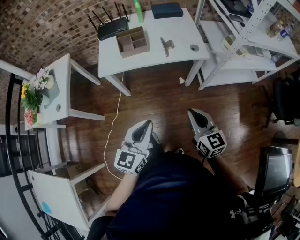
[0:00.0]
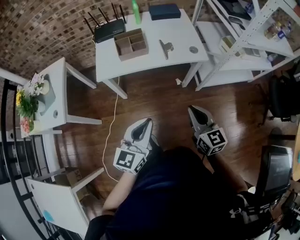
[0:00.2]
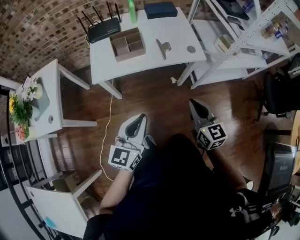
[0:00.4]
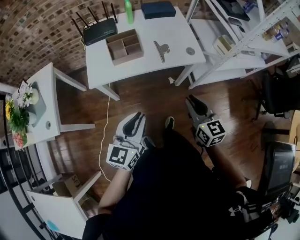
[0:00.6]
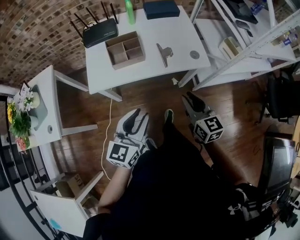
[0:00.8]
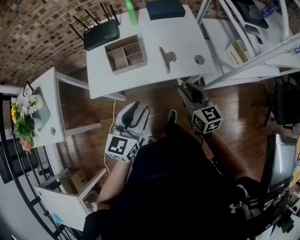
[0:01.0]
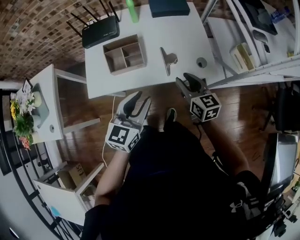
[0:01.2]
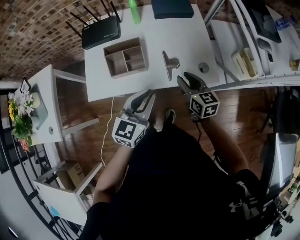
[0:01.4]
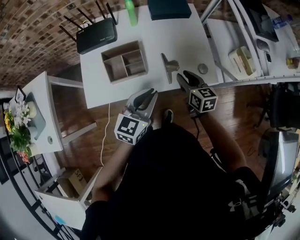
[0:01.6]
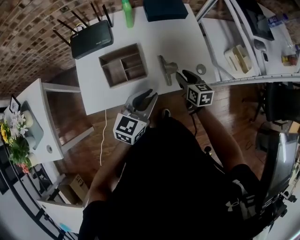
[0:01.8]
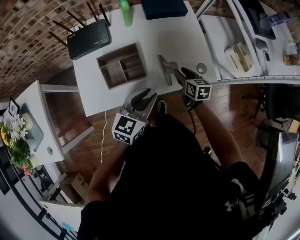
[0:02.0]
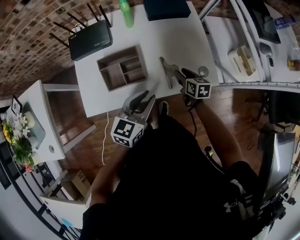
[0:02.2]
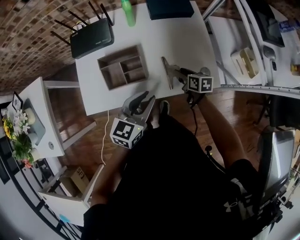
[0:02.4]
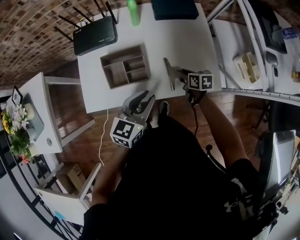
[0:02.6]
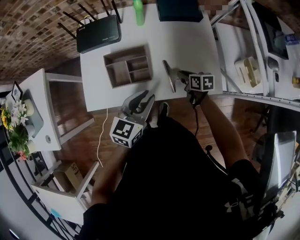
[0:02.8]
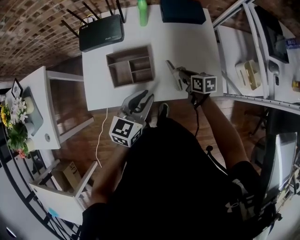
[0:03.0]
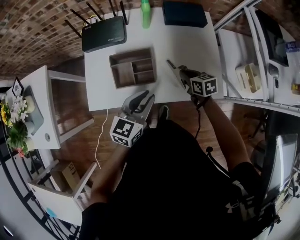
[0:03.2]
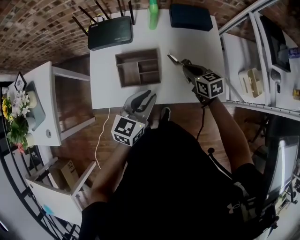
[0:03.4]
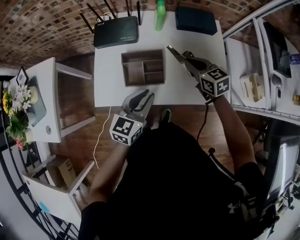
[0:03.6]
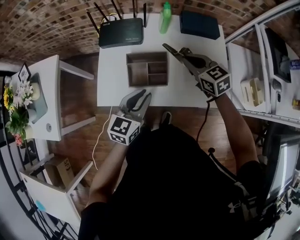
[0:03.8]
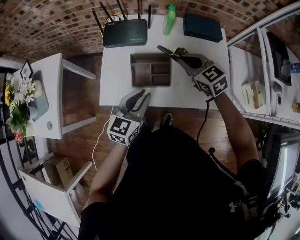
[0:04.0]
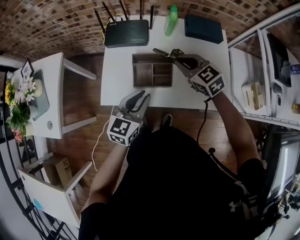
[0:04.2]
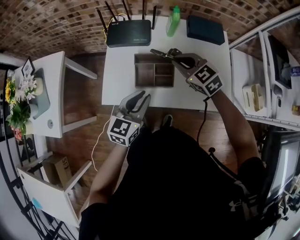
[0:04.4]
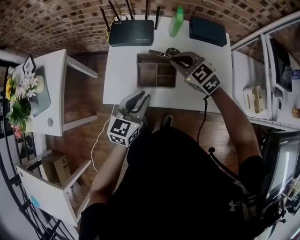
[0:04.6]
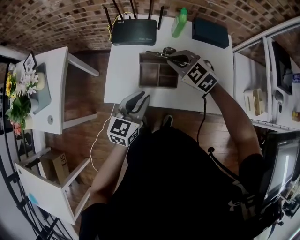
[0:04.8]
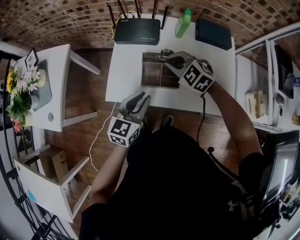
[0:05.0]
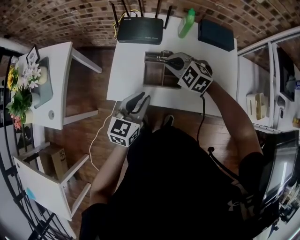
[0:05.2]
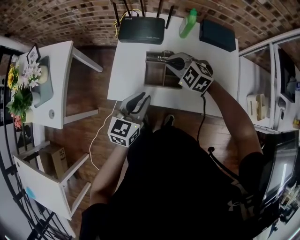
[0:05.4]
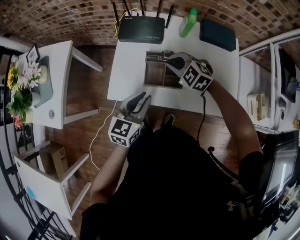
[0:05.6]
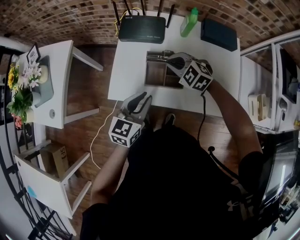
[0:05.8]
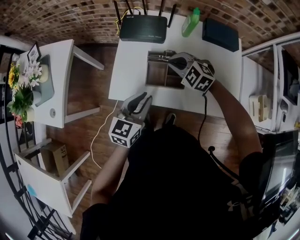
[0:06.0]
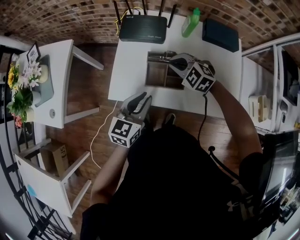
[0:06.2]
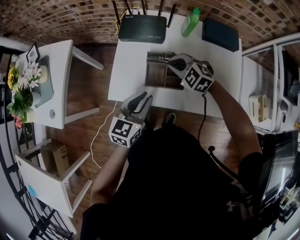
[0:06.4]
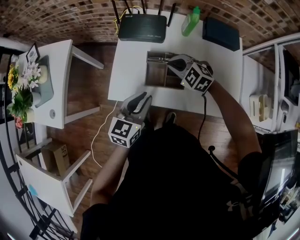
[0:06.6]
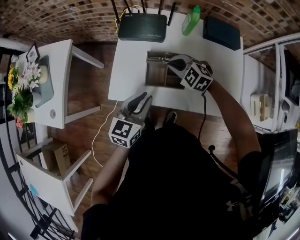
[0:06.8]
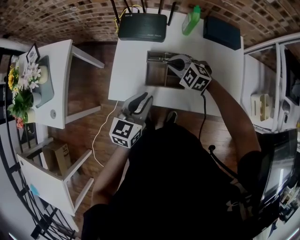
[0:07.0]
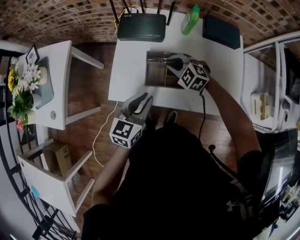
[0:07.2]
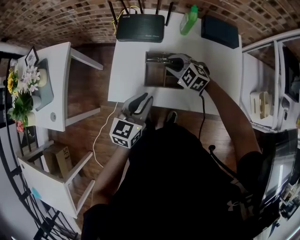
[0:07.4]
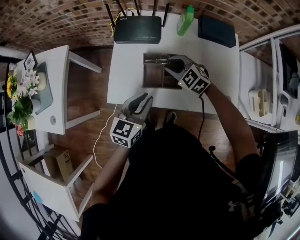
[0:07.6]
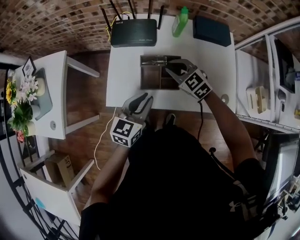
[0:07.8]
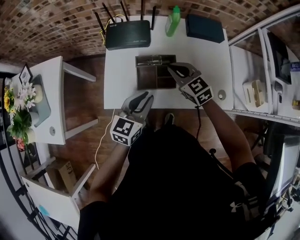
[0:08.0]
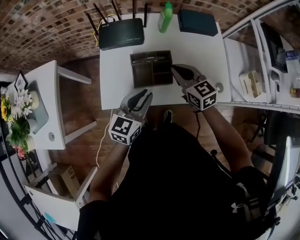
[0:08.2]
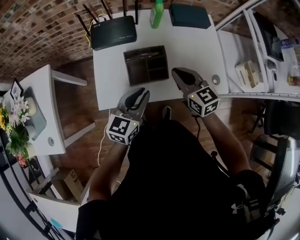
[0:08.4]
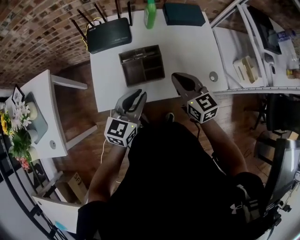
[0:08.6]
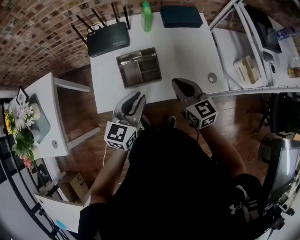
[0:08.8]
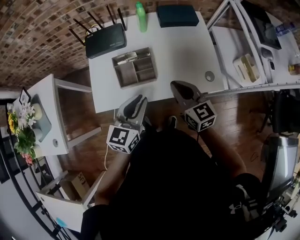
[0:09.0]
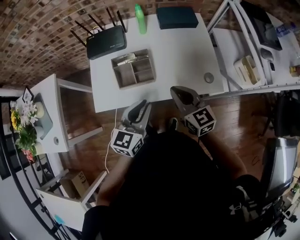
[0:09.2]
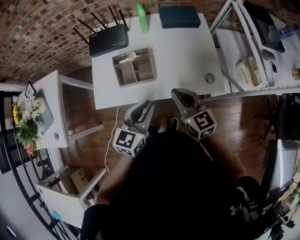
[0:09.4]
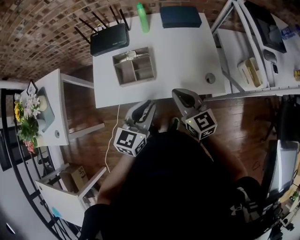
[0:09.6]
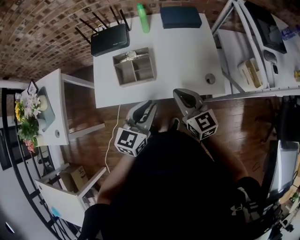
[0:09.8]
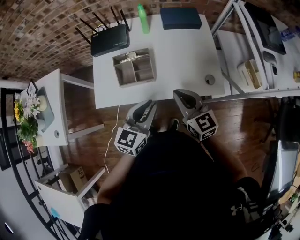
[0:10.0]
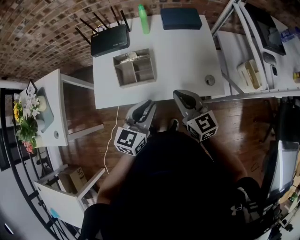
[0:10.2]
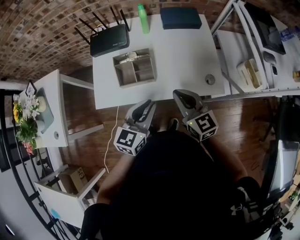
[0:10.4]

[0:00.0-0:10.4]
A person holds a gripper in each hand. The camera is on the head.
0:00.0 to 0:01.4: Both grippers move forward, approximately 35 cm. The right gripper opens up; the left gripper opens, then closes again.
0:01.4 to 0:03.0: The right gripper moves downward and forward, approximately 15 cm, changes its angle by approximately 30 degrees, and closes up; the left gripper is displaced forward and to the left by about 10 cm.
0:03.0 to 0:04.4: The left gripper heads to the left, covering about 10 cm. The right gripper goes approximately 25 cm upward and to the left, and rotates around the line of its fingers by about 60 degrees, counterclockwise from behind.
0:04.4 to 0:06.0: The right gripper heads to the left and downward, covering approximately 10 cm, and turns by about 30 degrees.
0:06.0 to 0:07.4: The right gripper opens up.
0:07.4 to 0:09.0: The left gripper moves to the right, about 10 cm, while the right gripper shifts some 25 cm backward, to the right and upward, swivels approximately 60 degrees, and closes its fingers.
0:09.0 to 0:10.4: The left gripper is displaced to the right by roughly 5 cm.

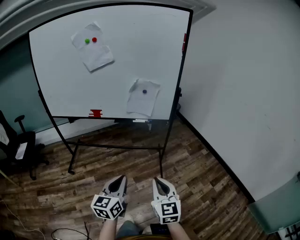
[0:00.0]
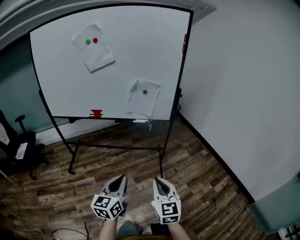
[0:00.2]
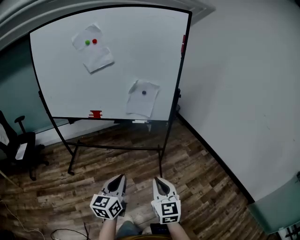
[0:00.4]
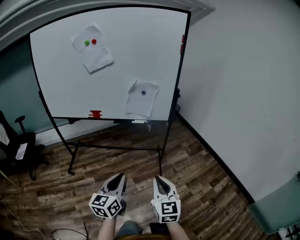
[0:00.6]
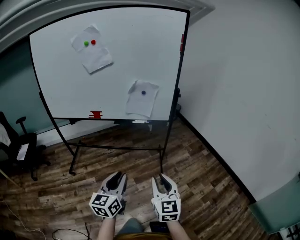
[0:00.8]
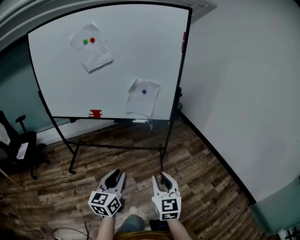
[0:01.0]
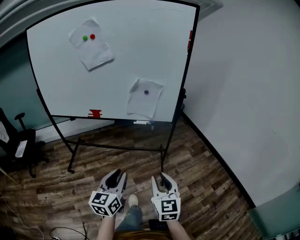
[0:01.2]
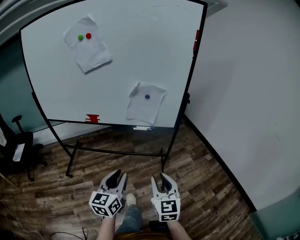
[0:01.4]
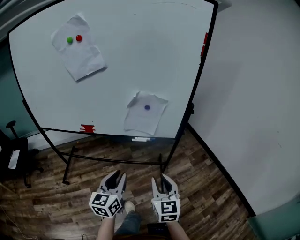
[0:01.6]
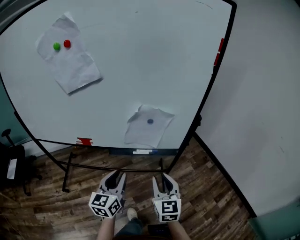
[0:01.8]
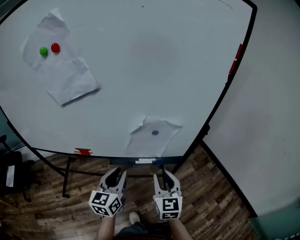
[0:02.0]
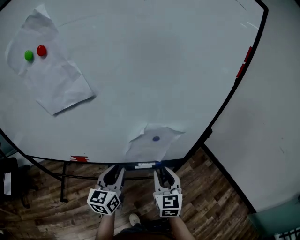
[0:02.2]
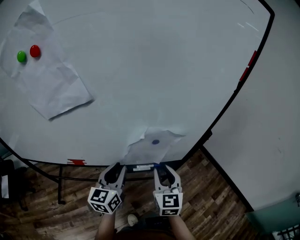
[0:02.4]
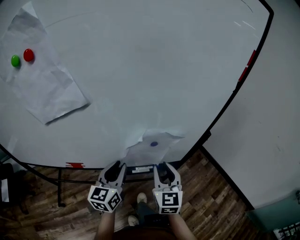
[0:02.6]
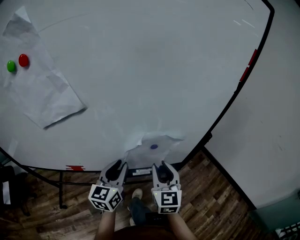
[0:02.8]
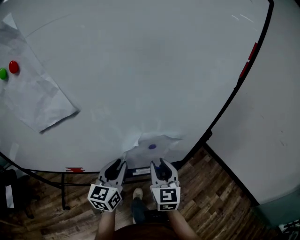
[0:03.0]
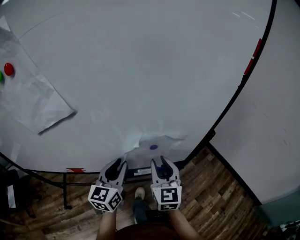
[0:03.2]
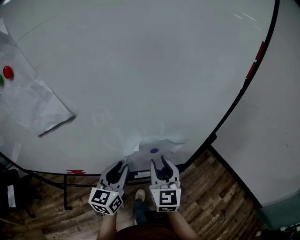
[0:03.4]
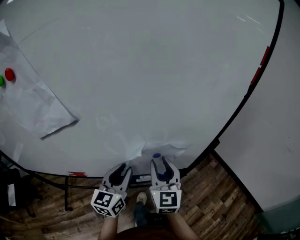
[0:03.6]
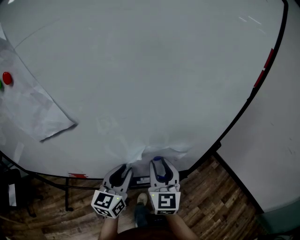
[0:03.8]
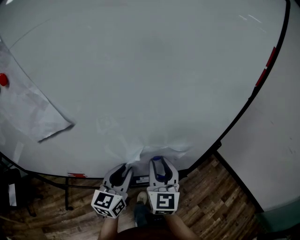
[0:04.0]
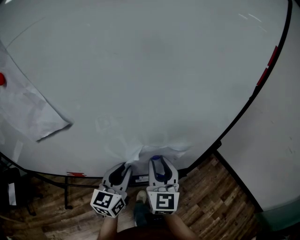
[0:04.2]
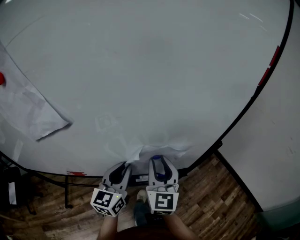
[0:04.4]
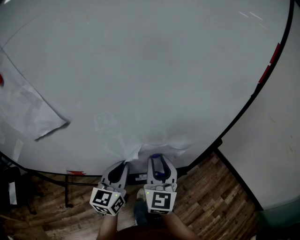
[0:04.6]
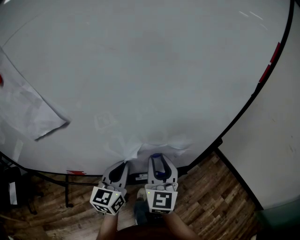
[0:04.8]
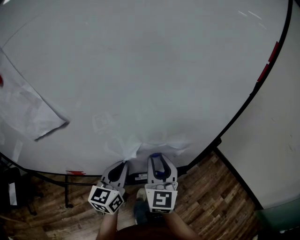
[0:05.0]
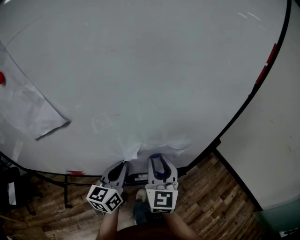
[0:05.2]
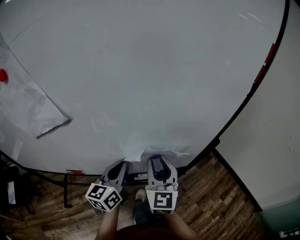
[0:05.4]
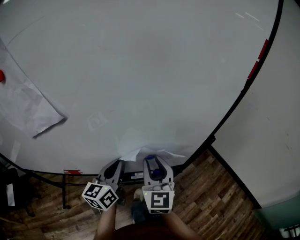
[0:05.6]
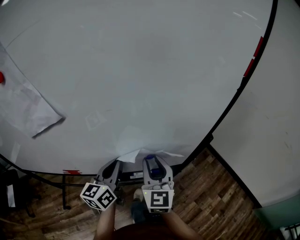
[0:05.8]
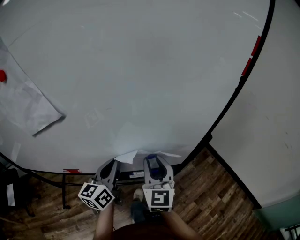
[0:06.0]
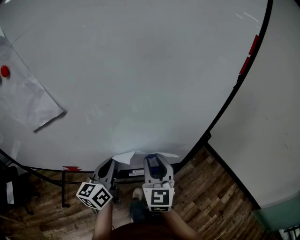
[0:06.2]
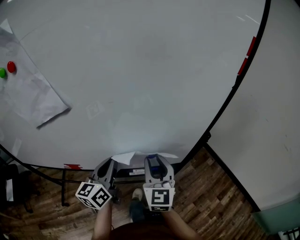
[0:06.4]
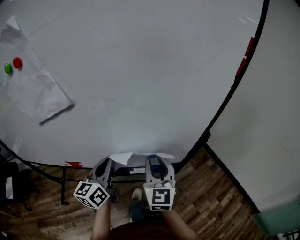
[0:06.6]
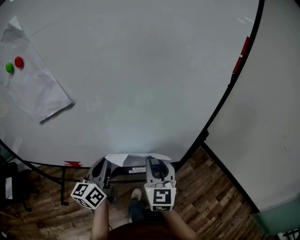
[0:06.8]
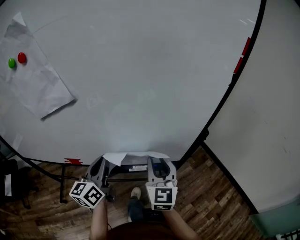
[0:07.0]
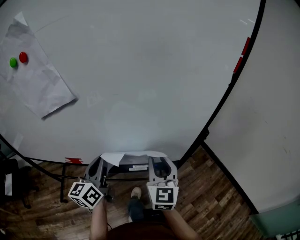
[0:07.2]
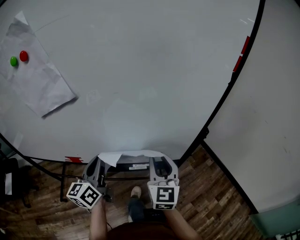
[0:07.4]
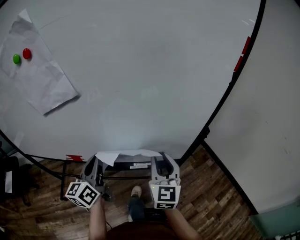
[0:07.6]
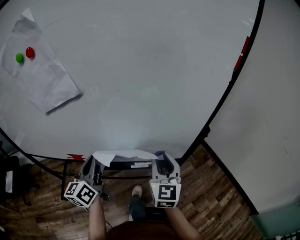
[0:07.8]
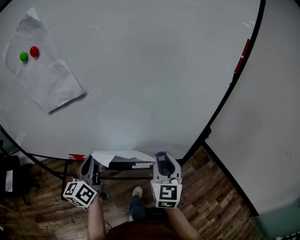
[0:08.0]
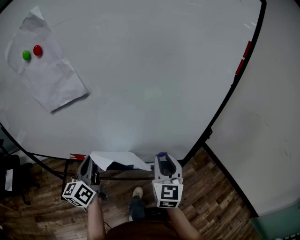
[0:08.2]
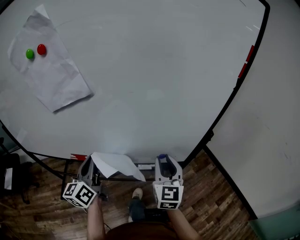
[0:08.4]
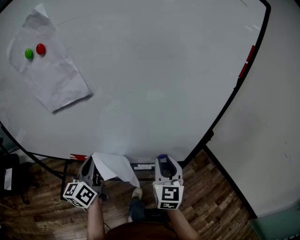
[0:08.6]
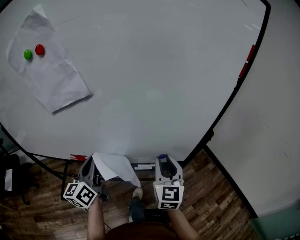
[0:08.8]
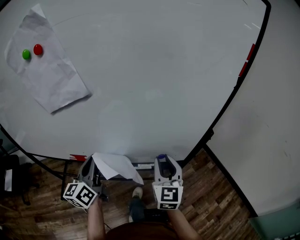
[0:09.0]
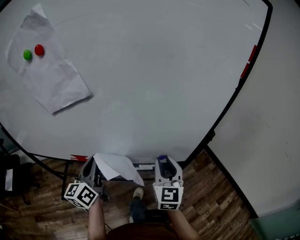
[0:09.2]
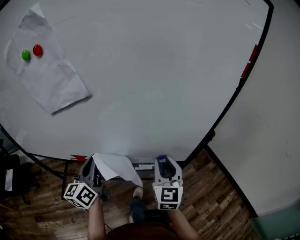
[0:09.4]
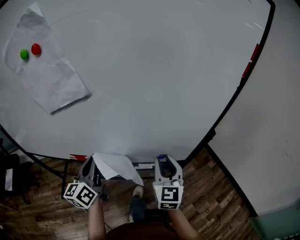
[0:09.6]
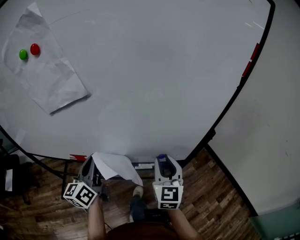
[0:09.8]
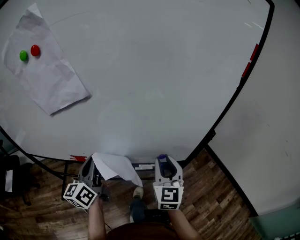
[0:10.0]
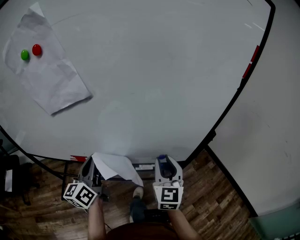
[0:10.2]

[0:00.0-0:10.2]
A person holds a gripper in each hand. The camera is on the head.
0:00.0 to 0:01.4: Both grippers move forward, approximately 15 cm. The right gripper opens its fingers.
0:01.4 to 0:03.0: Both grippers are carried forward, about 40 cm.
0:03.0 to 0:04.4: The right gripper changes place by roughly 5 cm.
0:04.4 to 0:05.8: The grippers make only small movements.
0:05.8 to 0:07.2: The left gripper shifts approximately 10 cm backward and to the left, while the right gripper shifts by some 5 cm.
0:07.2 to 0:08.8: The left gripper moves to the left, about 5 cm.
0:08.8 to 0:10.2: Both grippers stay about where they are.

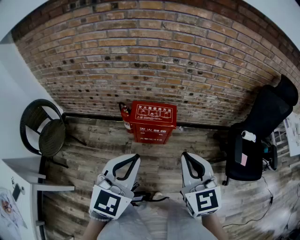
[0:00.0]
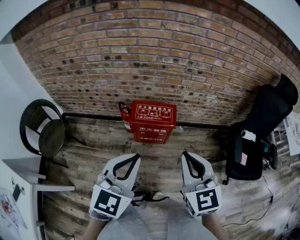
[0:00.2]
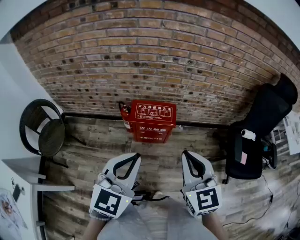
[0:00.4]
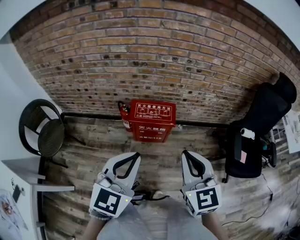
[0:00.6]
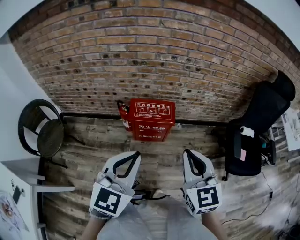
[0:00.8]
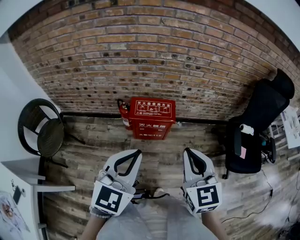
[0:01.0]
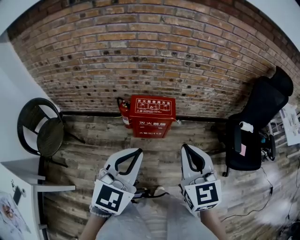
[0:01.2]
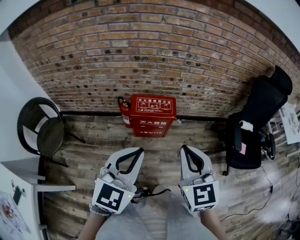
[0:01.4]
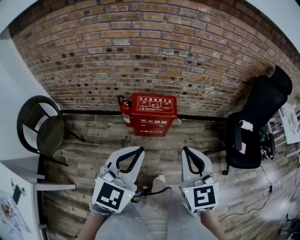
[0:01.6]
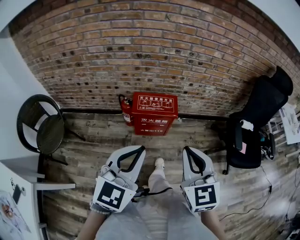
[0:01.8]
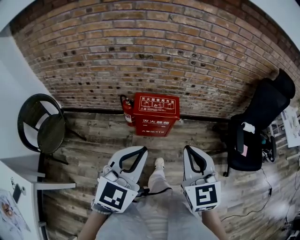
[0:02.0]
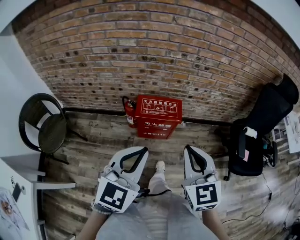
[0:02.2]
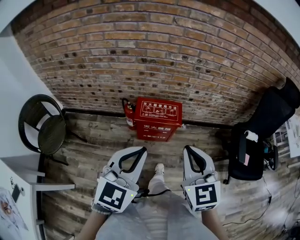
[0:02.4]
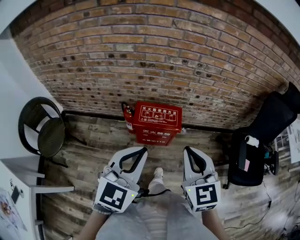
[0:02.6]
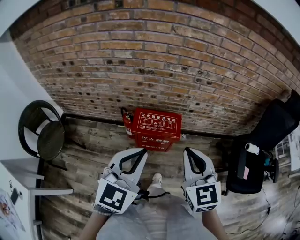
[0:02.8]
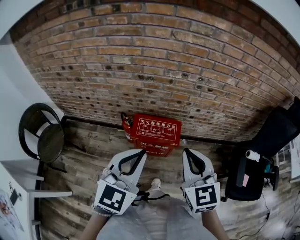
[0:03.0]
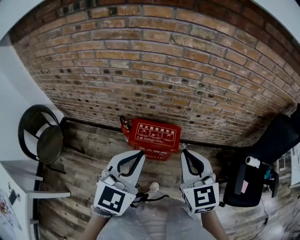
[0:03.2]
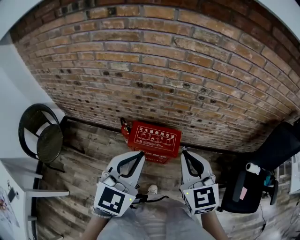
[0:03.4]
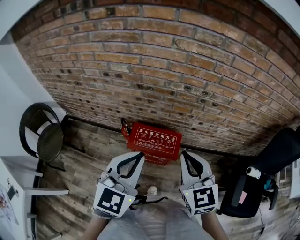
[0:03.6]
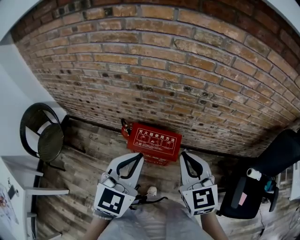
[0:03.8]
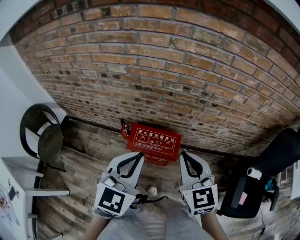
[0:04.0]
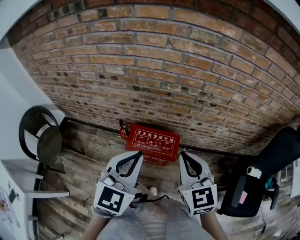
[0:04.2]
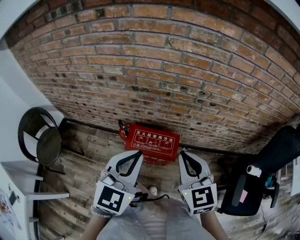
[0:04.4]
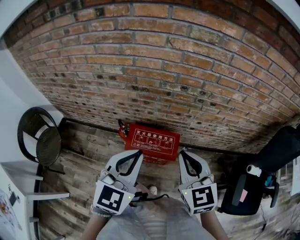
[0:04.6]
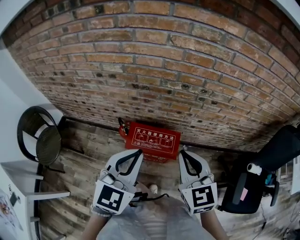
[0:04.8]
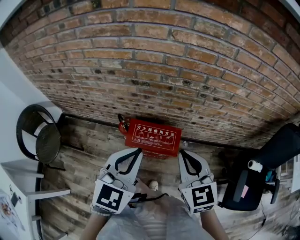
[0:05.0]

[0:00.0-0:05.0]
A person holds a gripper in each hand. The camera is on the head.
0:00.0 to 0:01.6: The right gripper changes place by some 5 cm.
0:01.6 to 0:03.4: The grippers both shift forward by some 25 cm.
0:03.4 to 0:05.0: The left gripper travels forward by roughly 5 cm; the right gripper changes place by some 5 cm.
